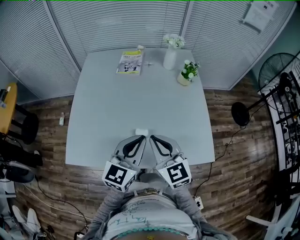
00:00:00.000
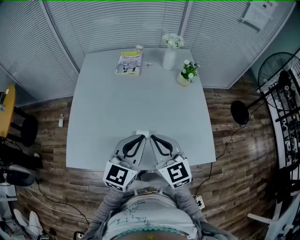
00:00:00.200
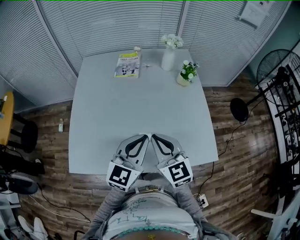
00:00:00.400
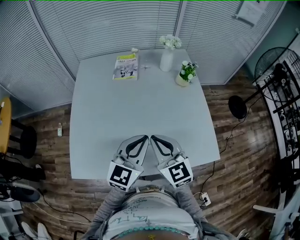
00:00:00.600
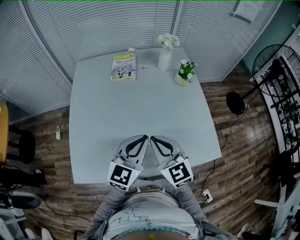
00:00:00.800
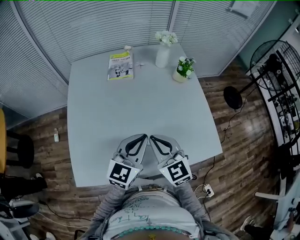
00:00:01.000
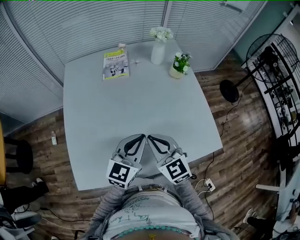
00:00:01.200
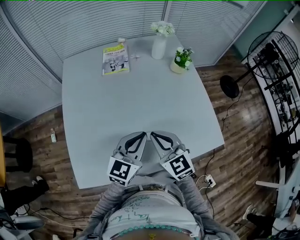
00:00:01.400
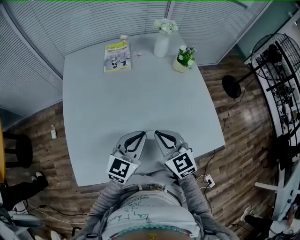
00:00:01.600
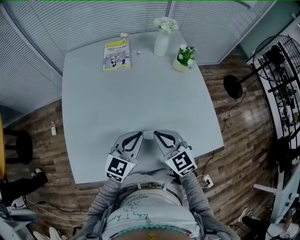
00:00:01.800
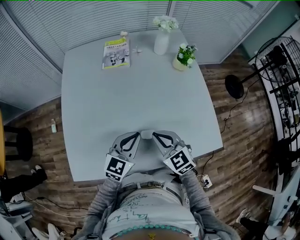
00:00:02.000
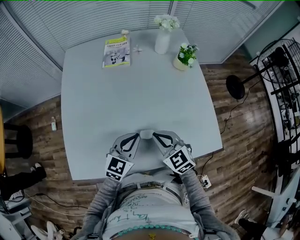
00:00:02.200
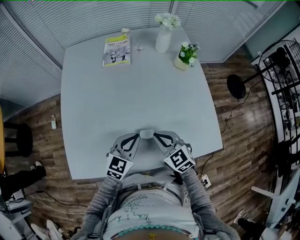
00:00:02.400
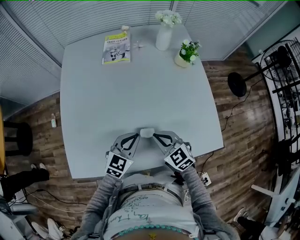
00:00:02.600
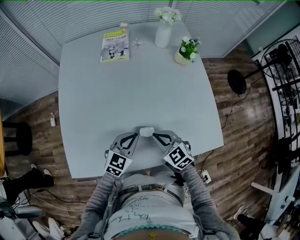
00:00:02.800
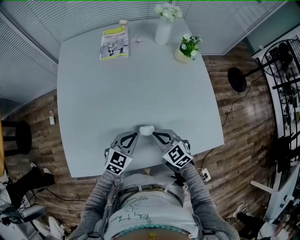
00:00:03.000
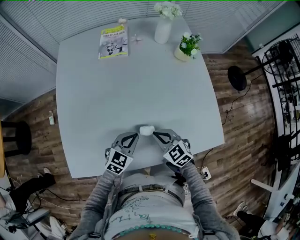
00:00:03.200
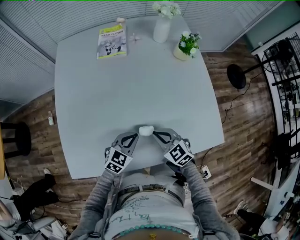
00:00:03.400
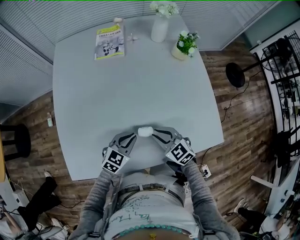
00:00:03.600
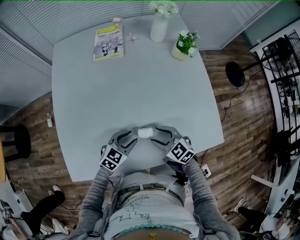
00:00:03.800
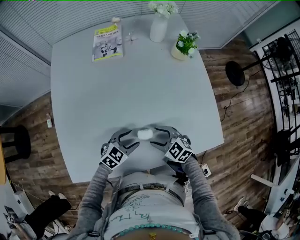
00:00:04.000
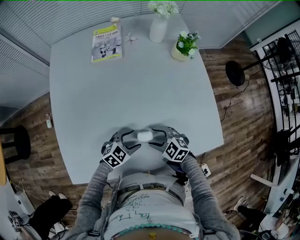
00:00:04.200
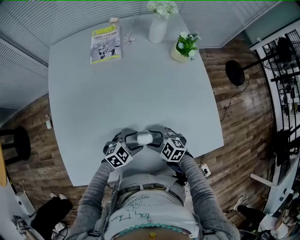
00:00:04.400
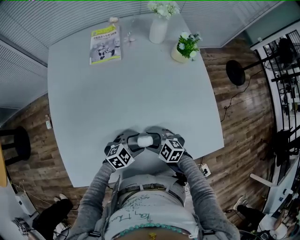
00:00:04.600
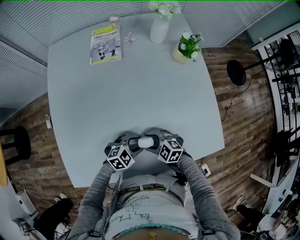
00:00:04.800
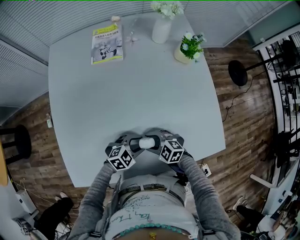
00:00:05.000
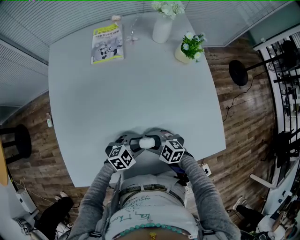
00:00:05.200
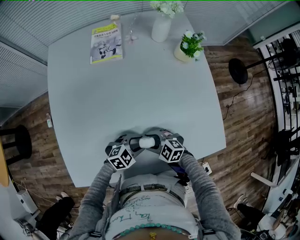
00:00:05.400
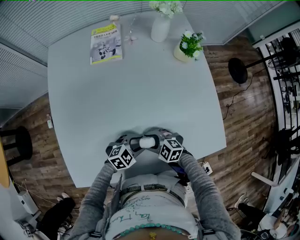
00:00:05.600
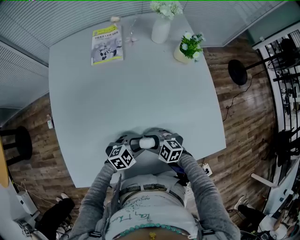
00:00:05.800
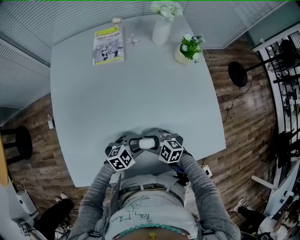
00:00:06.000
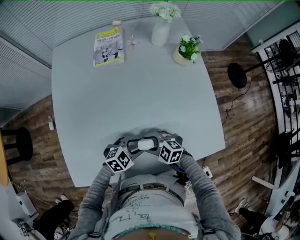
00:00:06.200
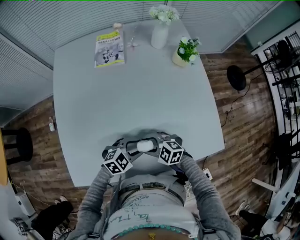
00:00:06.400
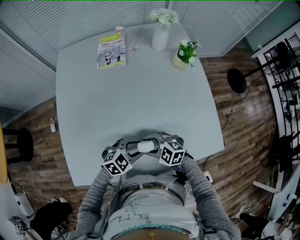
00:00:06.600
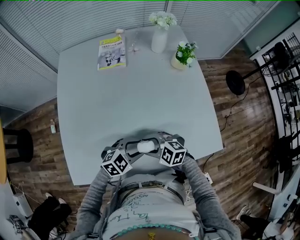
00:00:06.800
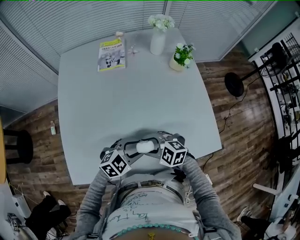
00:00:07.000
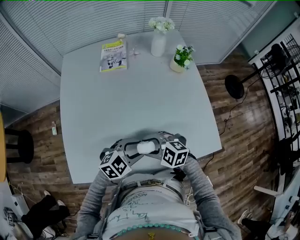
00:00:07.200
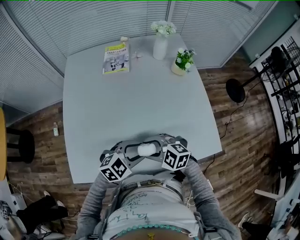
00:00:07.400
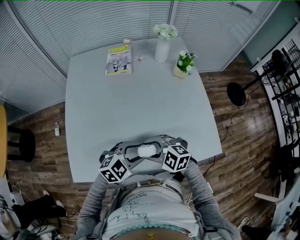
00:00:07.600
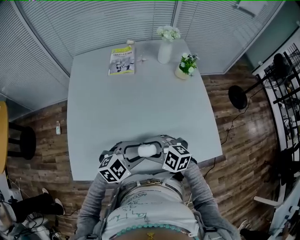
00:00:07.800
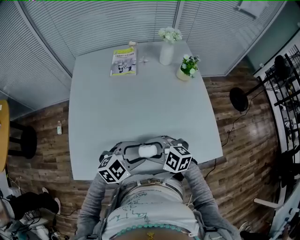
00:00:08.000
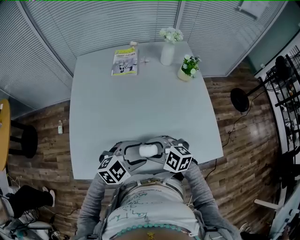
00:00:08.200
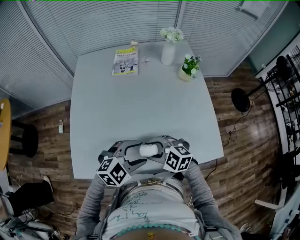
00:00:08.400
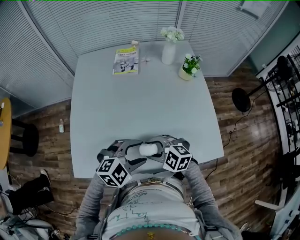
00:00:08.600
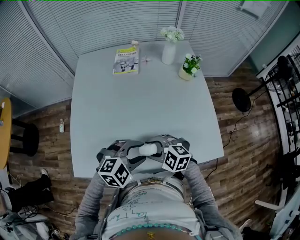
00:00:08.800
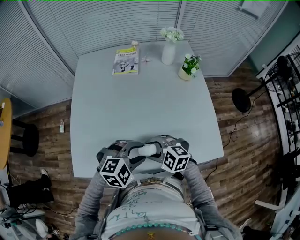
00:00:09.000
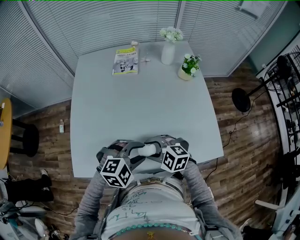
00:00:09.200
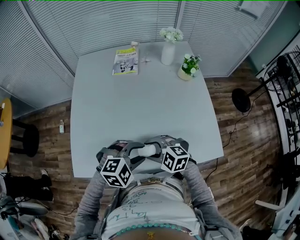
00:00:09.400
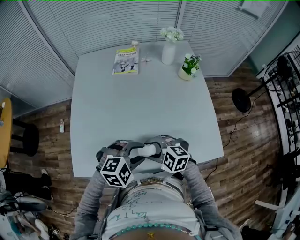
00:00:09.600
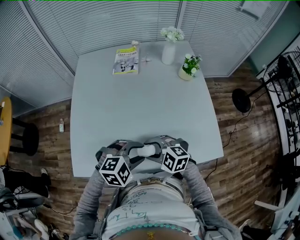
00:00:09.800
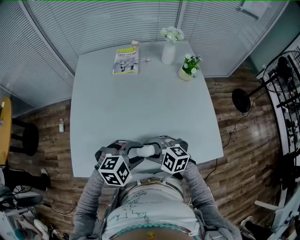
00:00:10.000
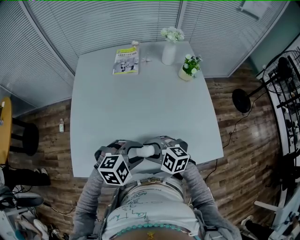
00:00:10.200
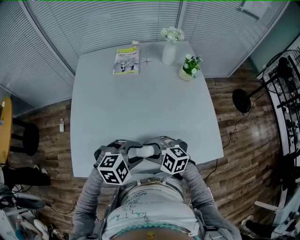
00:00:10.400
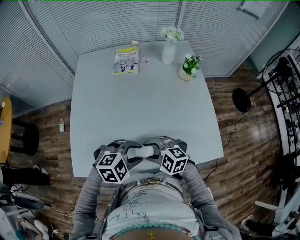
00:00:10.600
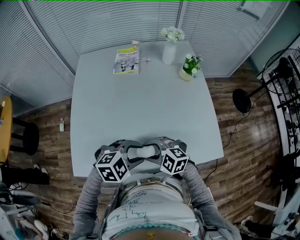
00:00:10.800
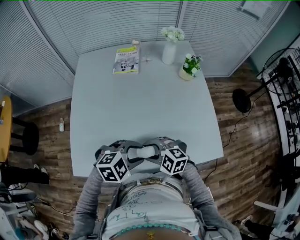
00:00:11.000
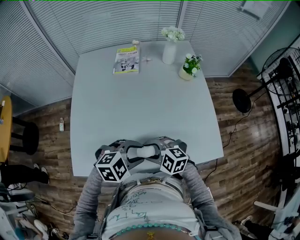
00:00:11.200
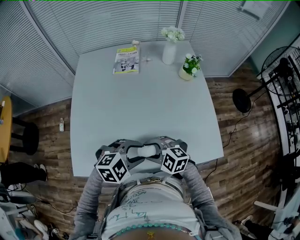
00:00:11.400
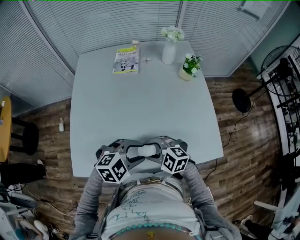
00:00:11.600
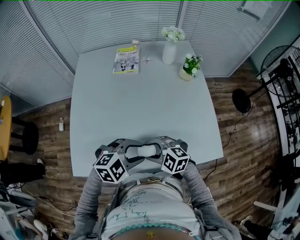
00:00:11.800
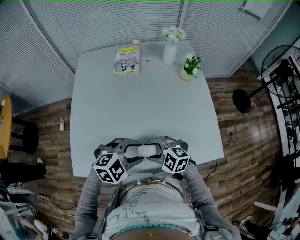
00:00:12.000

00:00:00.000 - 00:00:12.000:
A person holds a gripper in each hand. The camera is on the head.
00:00:00.000 - 00:00:01.600: Both grippers travel together downward, forward and to the left, about 15 cm.
00:00:01.600 - 00:00:03.000: The grippers both shift downward by roughly 15 cm. The left gripper rotates about 20 degrees, while the right gripper swivels roughly 20 degrees.
00:00:03.000 - 00:00:04.400: The grippers both shift downward by some 10 cm. The left gripper rotates approximately 30 degrees, and opens its fingers. The right gripper rotates roughly 20 degrees, and opens its fingers.
00:00:04.400 - 00:00:06.000: There are only small adjustments of the grippers.
00:00:06.000 - 00:00:07.600: Both grippers move upward, some 15 cm.
00:00:07.600 - 00:00:12.000: The grippers stay close to where they were, moving slightly.

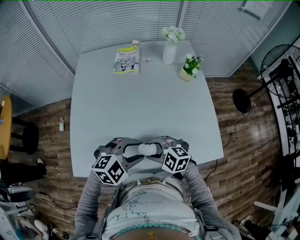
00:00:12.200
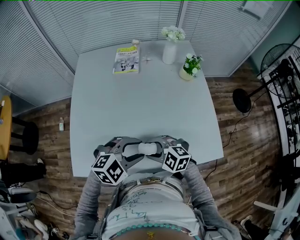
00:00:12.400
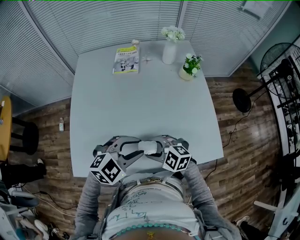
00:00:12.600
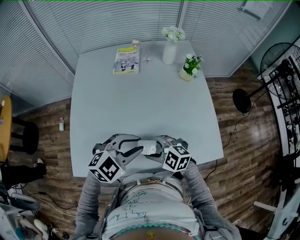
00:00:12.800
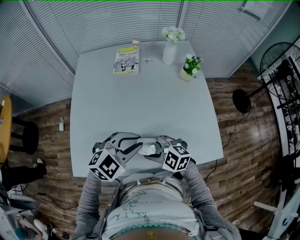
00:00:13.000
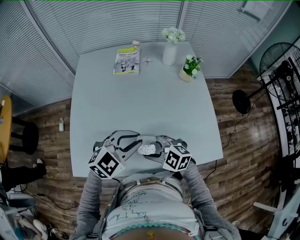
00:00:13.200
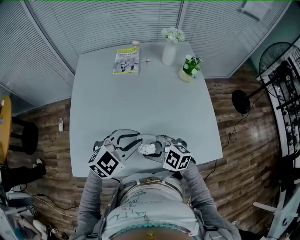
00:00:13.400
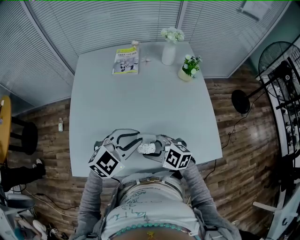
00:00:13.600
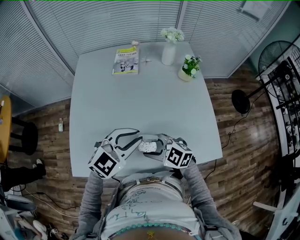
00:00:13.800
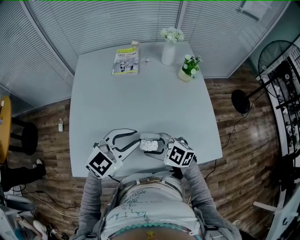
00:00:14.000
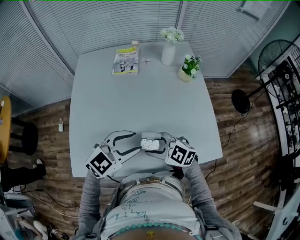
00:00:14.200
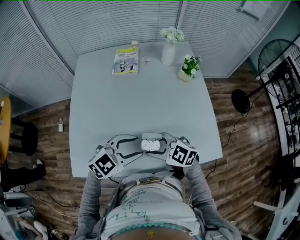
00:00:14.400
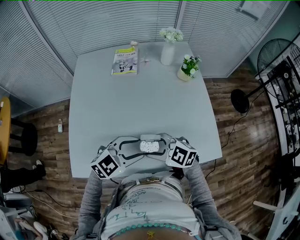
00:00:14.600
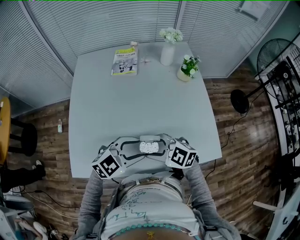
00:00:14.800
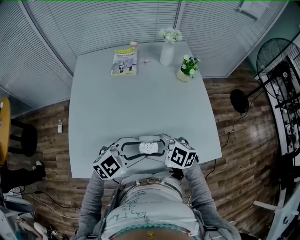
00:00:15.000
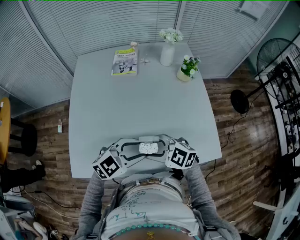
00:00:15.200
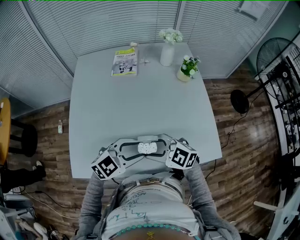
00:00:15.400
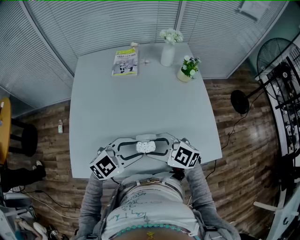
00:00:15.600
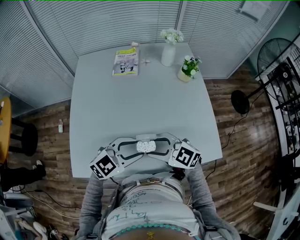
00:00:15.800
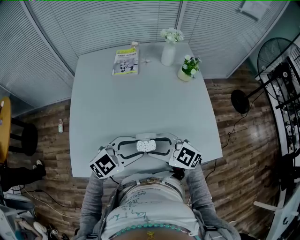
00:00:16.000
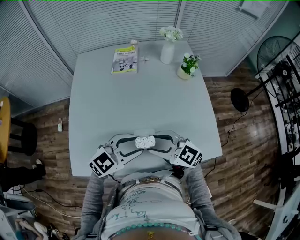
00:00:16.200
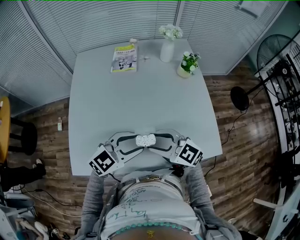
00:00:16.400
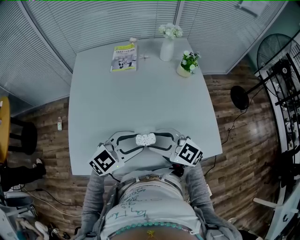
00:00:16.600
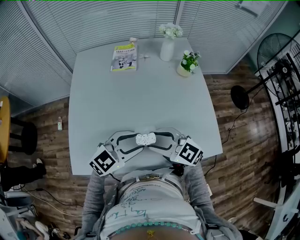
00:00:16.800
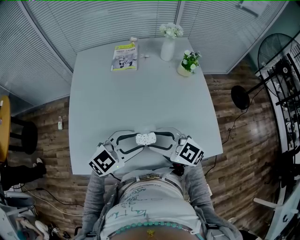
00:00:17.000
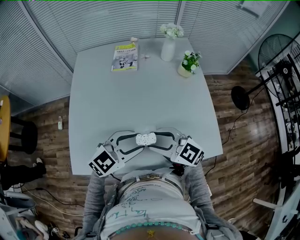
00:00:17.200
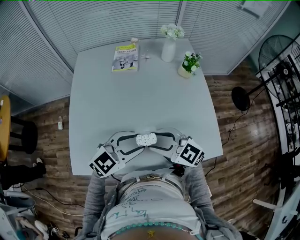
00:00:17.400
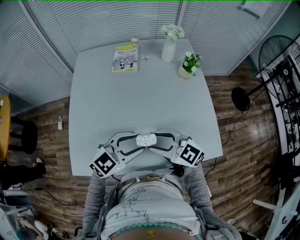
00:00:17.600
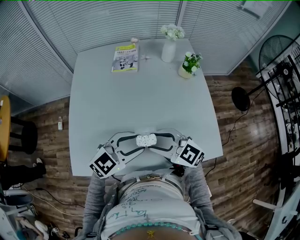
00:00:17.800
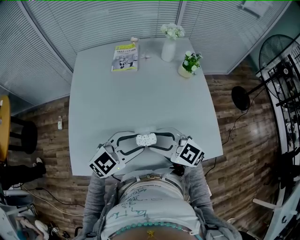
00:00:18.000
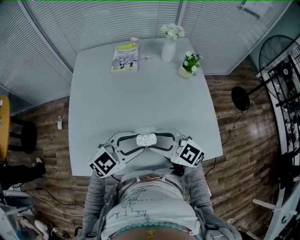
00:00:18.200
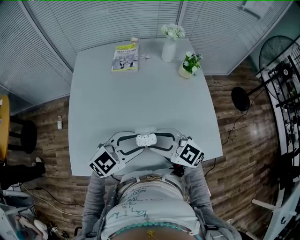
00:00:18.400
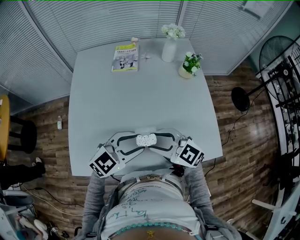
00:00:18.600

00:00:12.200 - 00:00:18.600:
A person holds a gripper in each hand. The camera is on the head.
00:00:12.200 - 00:00:13.800: The left gripper is displaced upward by about 5 cm, changes its angle by approximately 30 degrees, and closes.
00:00:13.800 - 00:00:15.400: The left gripper is displaced downward by about 5 cm, and opens its fingers.
00:00:15.400 - 00:00:17.000: The grippers make only small movements.
00:00:17.000 - 00:00:18.600: Neither gripper changes place.

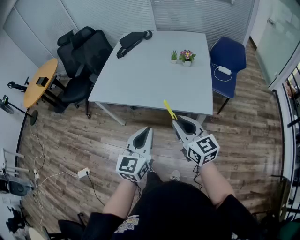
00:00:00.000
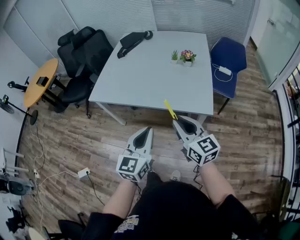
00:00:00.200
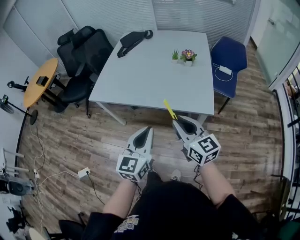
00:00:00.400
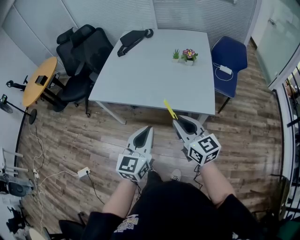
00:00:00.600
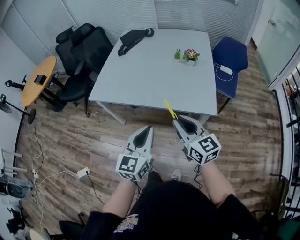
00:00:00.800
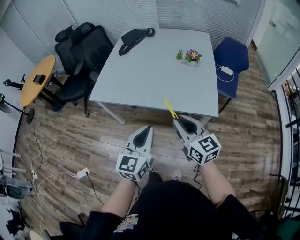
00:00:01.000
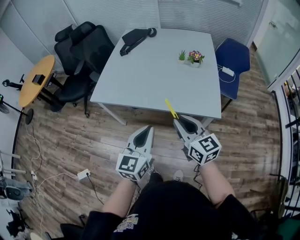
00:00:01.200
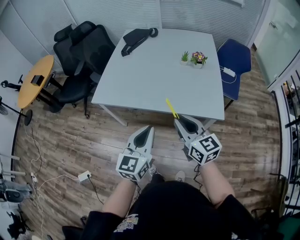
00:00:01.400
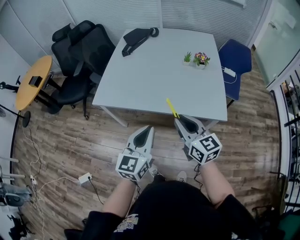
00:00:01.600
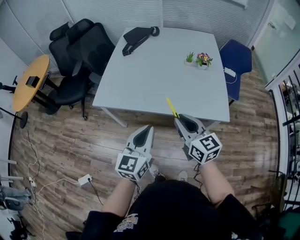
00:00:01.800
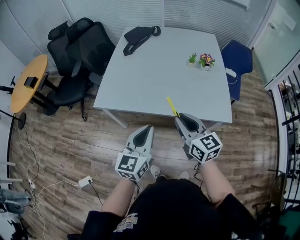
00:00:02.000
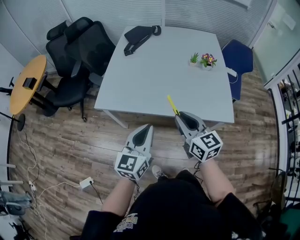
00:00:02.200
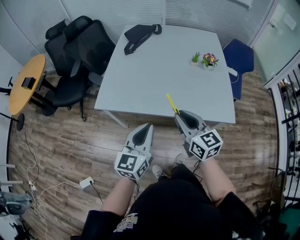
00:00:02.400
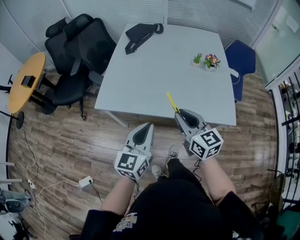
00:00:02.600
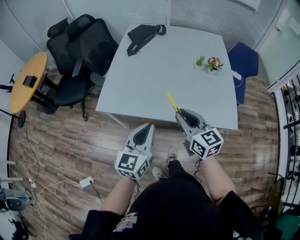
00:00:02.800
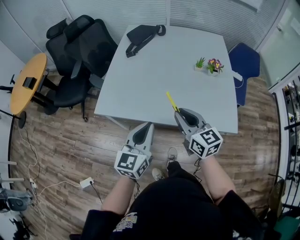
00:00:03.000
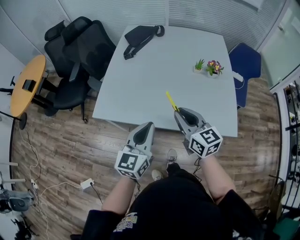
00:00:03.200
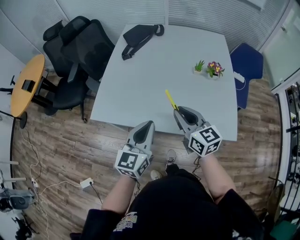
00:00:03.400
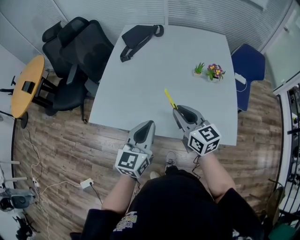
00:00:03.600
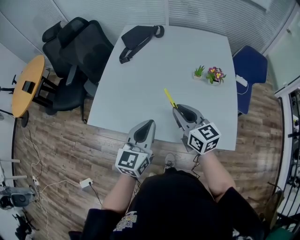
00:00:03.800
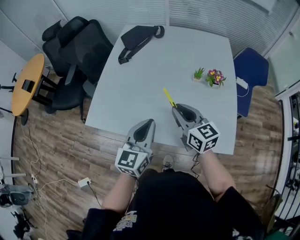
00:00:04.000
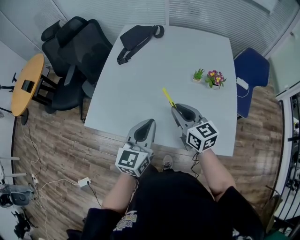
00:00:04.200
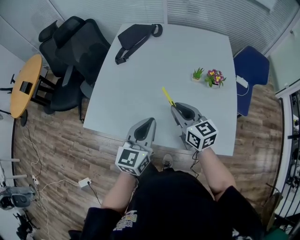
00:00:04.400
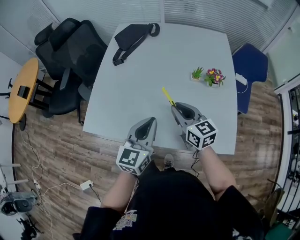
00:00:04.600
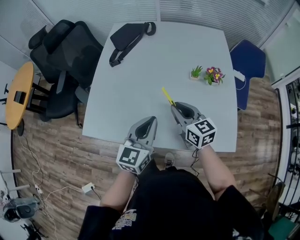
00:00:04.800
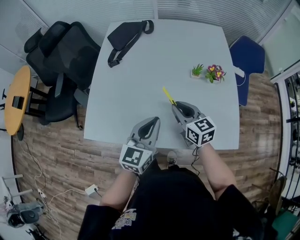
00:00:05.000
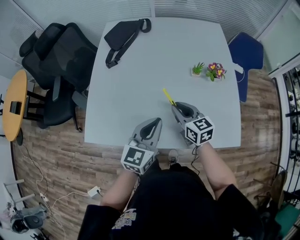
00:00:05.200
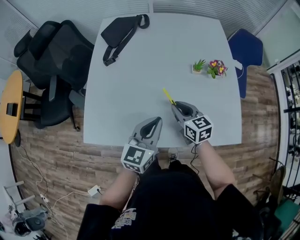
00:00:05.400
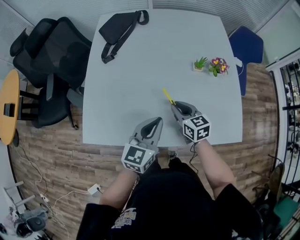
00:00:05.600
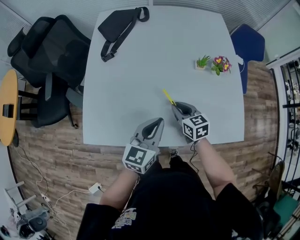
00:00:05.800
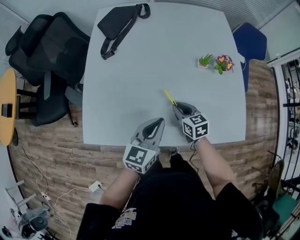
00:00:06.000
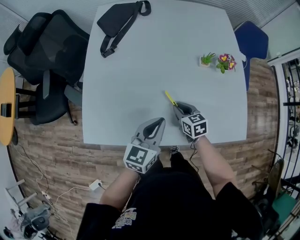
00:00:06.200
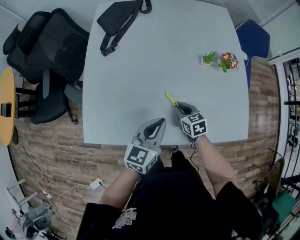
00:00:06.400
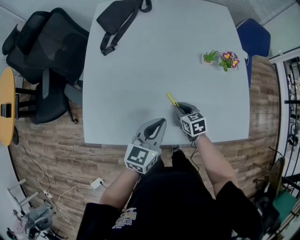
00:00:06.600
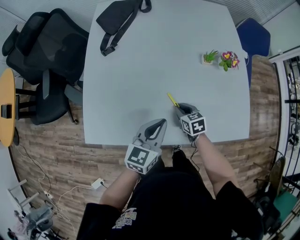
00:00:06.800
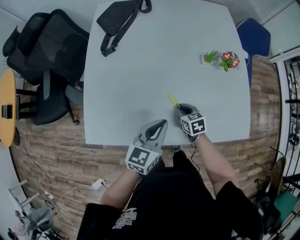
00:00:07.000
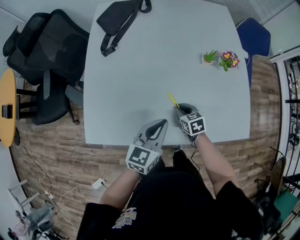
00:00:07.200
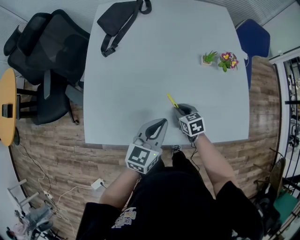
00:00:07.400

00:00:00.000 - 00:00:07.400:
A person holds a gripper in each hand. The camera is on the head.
00:00:00.000 - 00:00:01.400: The grippers both shift to the left and forward by some 10 cm.
00:00:01.400 - 00:00:03.000: Both grippers travel together forward and to the left, some 20 cm.
00:00:03.000 - 00:00:04.400: The two grippers go some 20 cm forward and to the right.
00:00:04.400 - 00:00:06.000: The right gripper moves downward, some 20 cm, and swivels roughly 30 degrees; the left gripper goes some 10 cm downward and forward, and swivels approximately 20 degrees.
00:00:06.000 - 00:00:07.400: The right gripper travels downward by some 5 cm.
